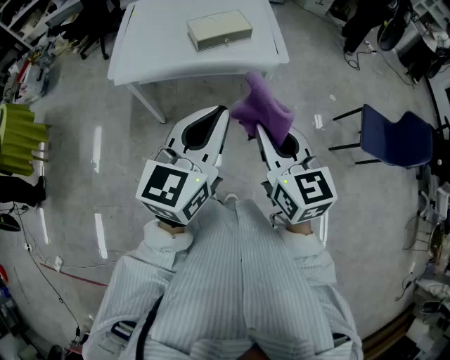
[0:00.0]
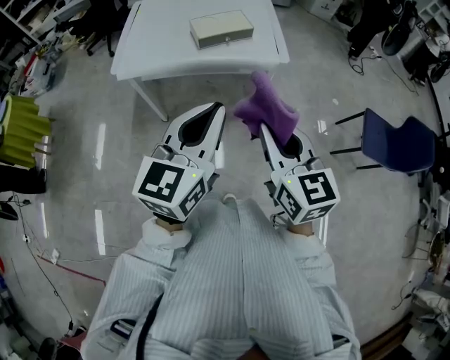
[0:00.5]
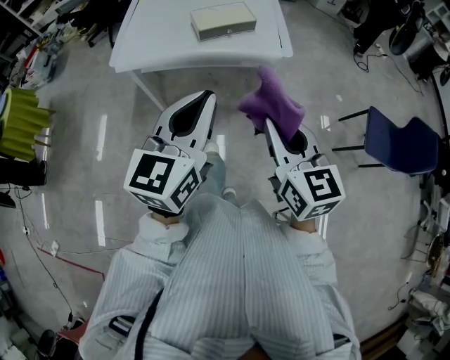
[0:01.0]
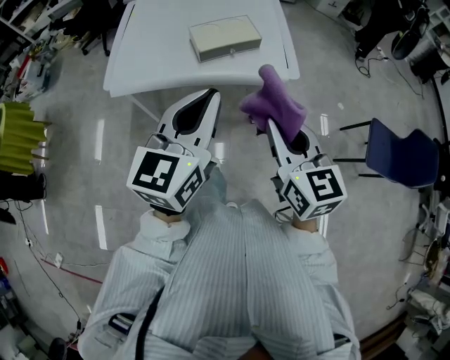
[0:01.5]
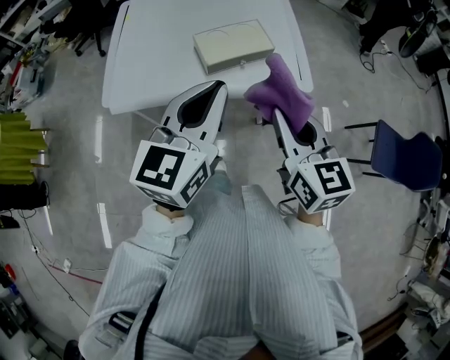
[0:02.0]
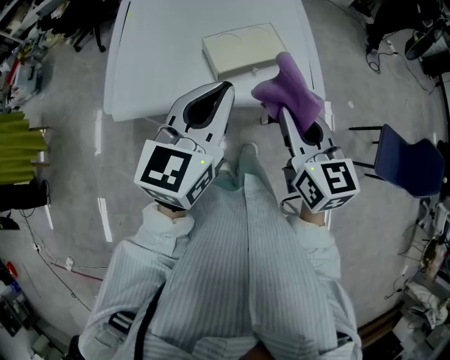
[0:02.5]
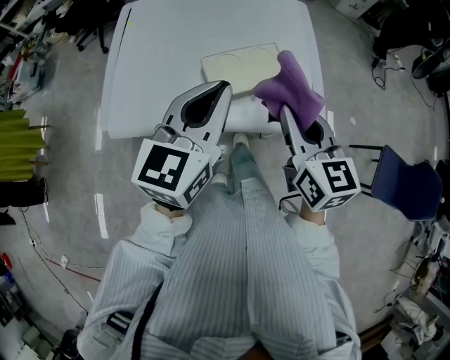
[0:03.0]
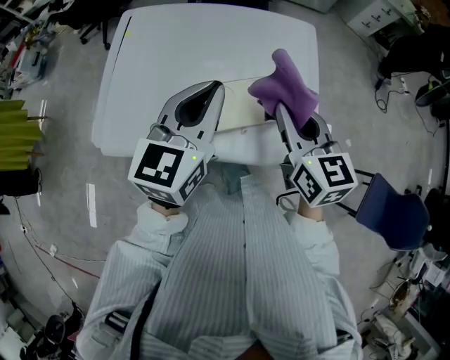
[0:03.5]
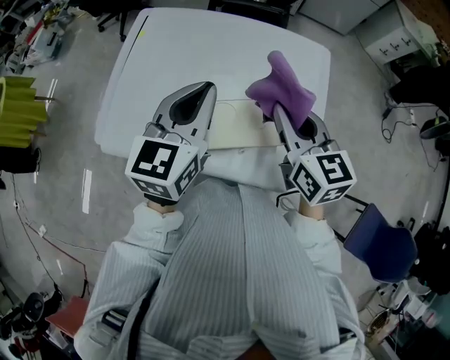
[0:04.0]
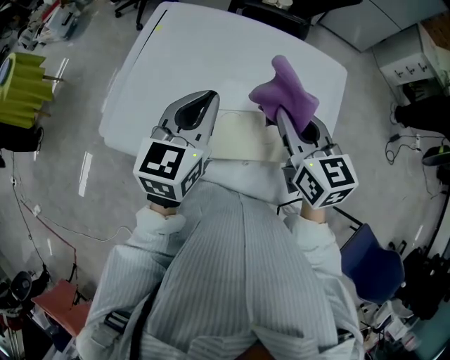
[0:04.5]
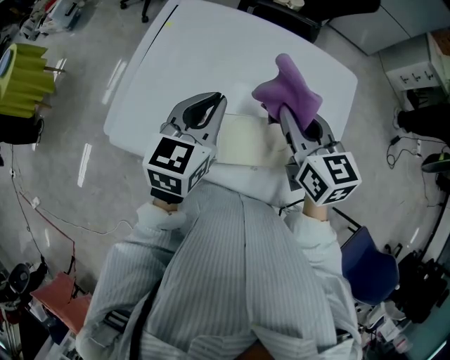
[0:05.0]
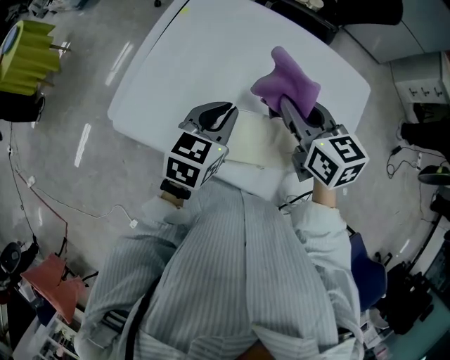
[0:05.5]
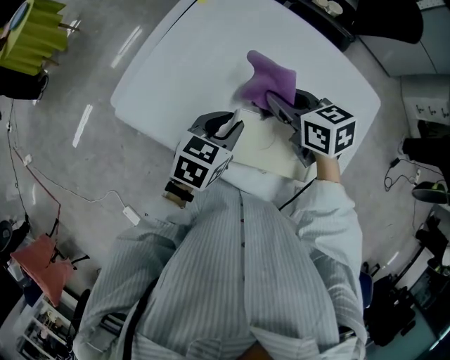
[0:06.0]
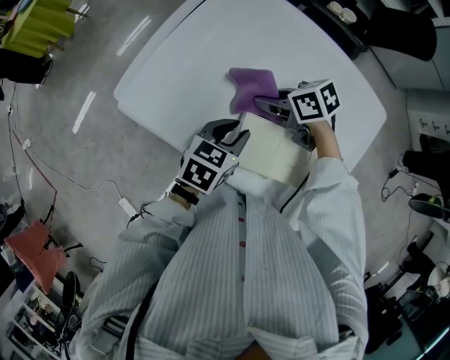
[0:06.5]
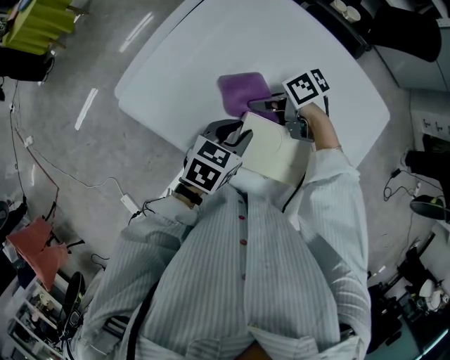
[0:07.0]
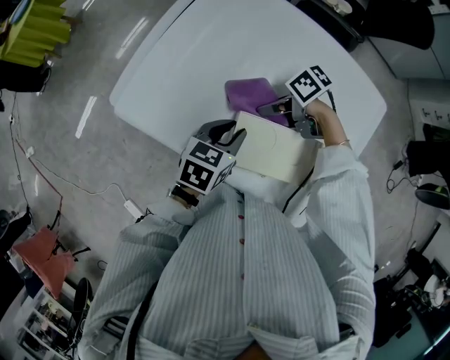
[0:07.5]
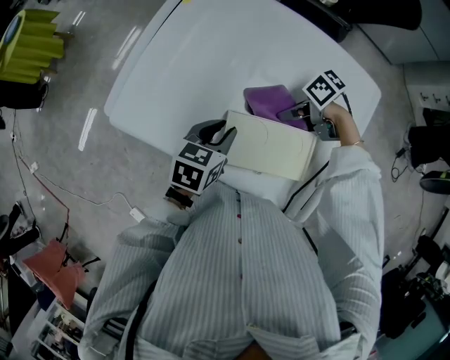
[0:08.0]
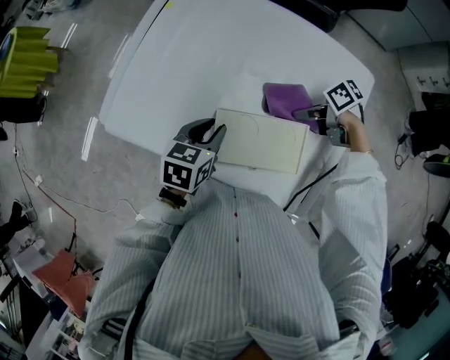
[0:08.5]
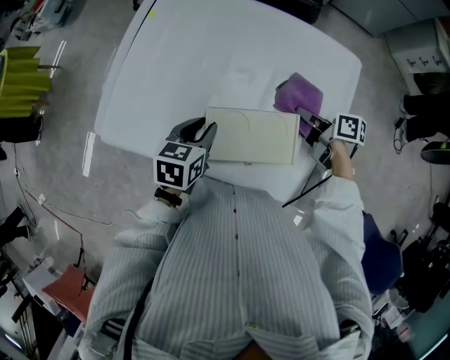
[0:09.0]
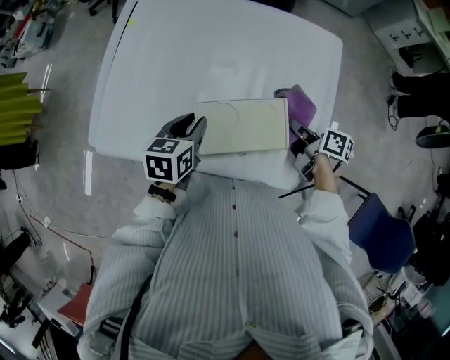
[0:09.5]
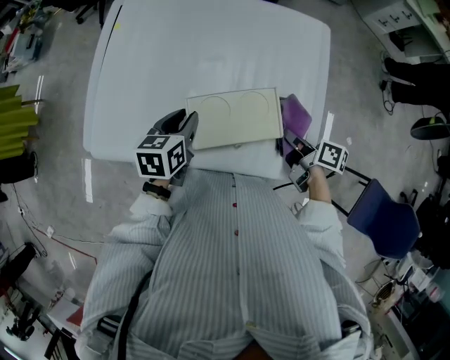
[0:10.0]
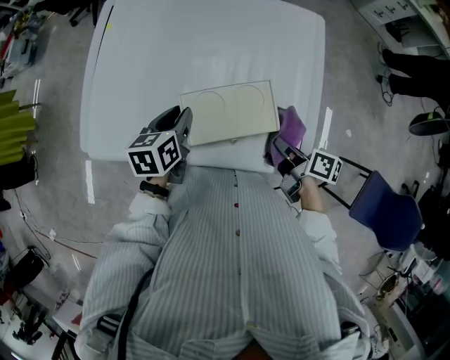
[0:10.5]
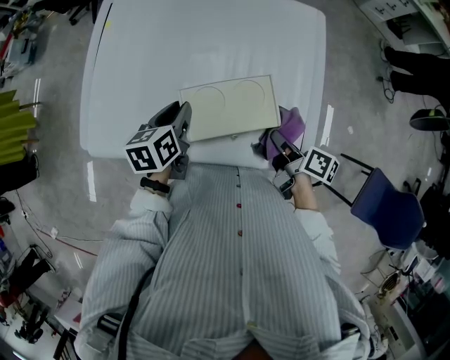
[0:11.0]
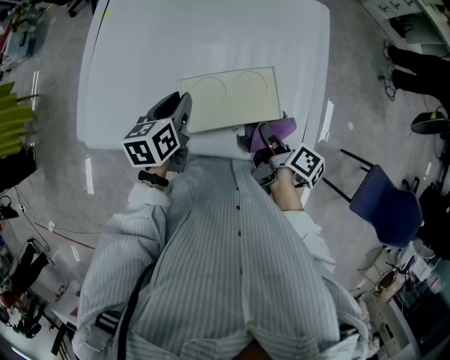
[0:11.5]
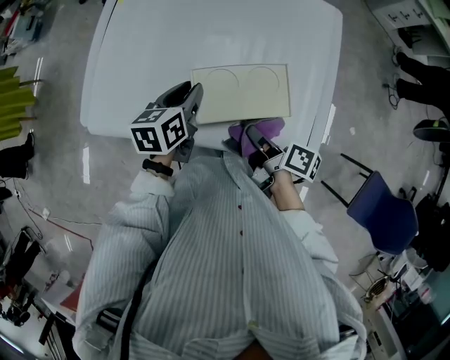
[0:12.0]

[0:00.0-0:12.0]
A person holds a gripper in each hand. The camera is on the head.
0:00.0 to 0:02.0: The two grippers go approximately 25 cm forward.
0:02.0 to 0:04.0: The two grippers go roughly 35 cm forward.
0:04.0 to 0:06.0: The right gripper goes roughly 20 cm to the left, downward and forward, and turns by roughly 40 degrees. Meanwhile the left gripper heads downward, covering approximately 20 cm, and rotates about 30 degrees.
0:06.0 to 0:08.0: The right gripper moves downward, about 10 cm, and turns by roughly 50 degrees.
0:08.0 to 0:10.0: The right gripper changes place by about 20 cm, and turns by some 80 degrees.
0:10.0 to 0:12.0: The right gripper heads to the left and backward, covering about 15 cm.

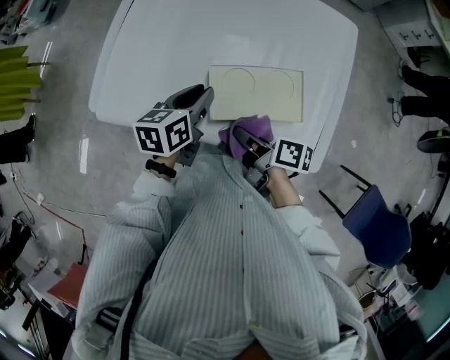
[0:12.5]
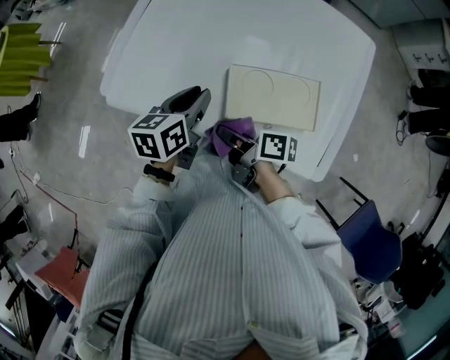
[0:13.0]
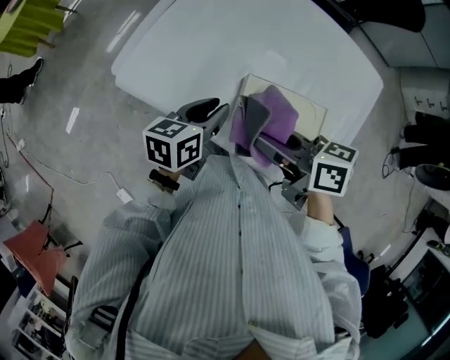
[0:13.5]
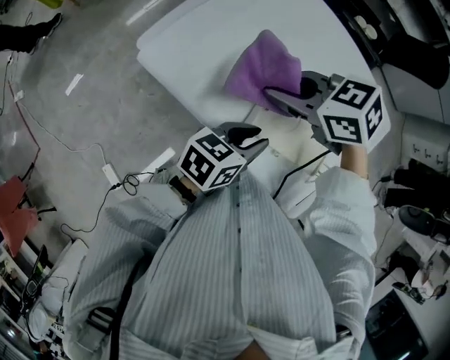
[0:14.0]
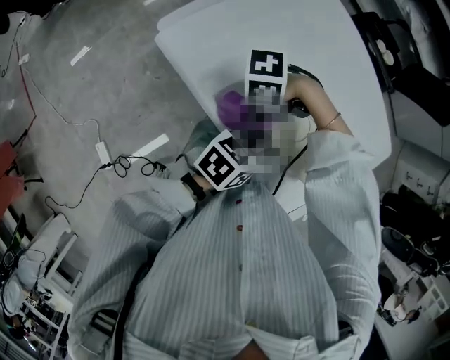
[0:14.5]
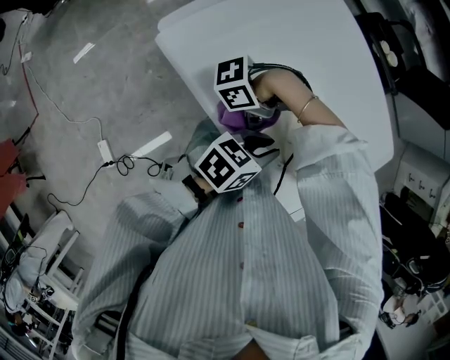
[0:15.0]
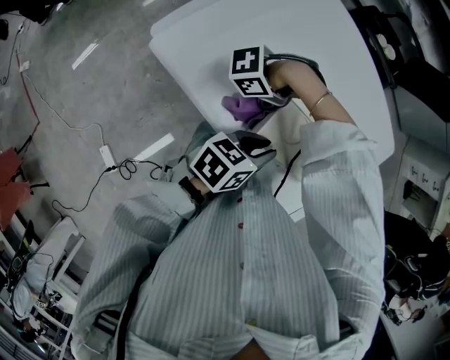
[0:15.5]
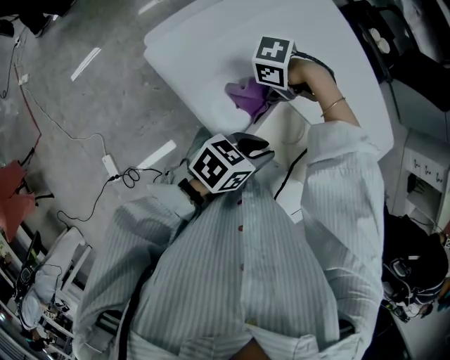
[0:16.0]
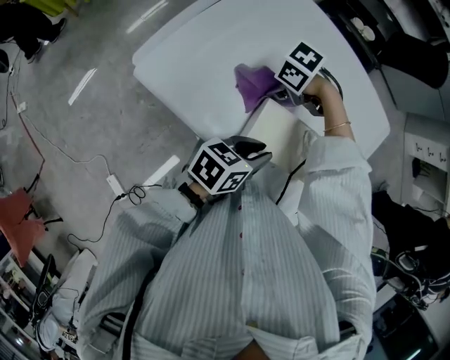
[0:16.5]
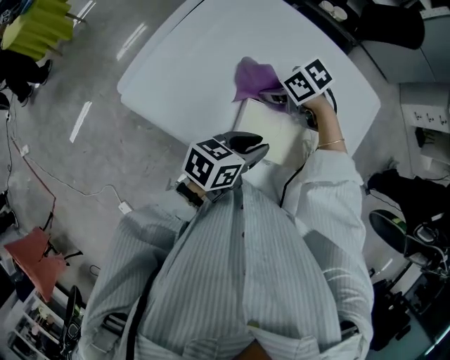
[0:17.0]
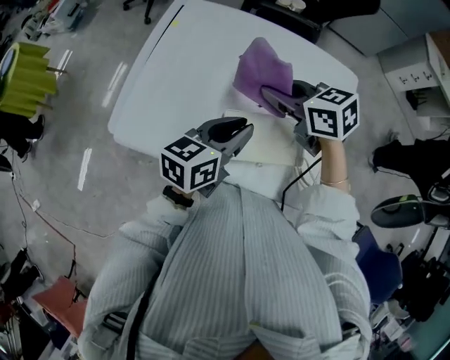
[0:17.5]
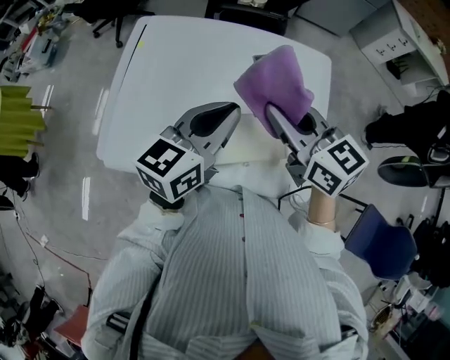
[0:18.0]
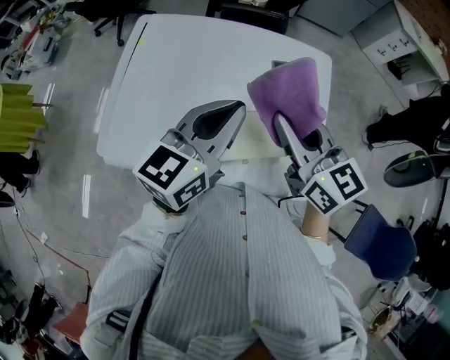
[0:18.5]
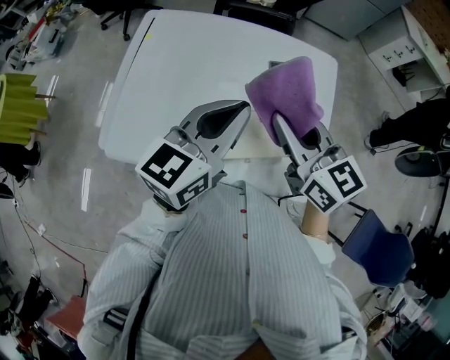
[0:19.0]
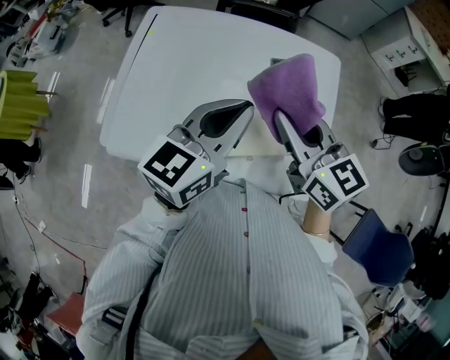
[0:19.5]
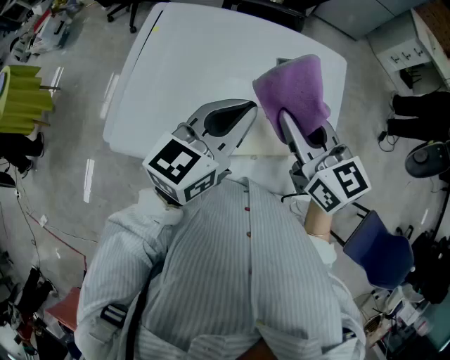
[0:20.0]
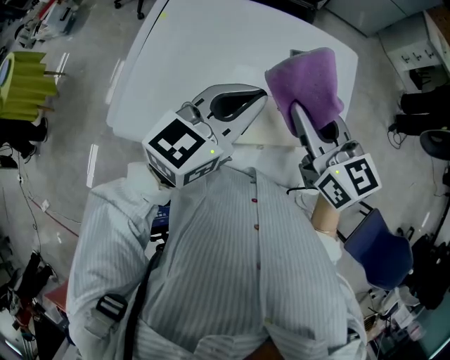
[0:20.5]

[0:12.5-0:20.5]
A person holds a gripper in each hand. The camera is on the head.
0:12.5 to 0:14.5: The left gripper changes place by some 10 cm. Meanwhile the right gripper reaches approximately 15 cm upward, then returns, and rotates some 150 degrees.
0:14.5 to 0:16.5: The right gripper ends up approximately 15 cm from where it was, and swivels roughly 40 degrees.
0:16.5 to 0:18.5: Both grippers move upward, some 25 cm. The left gripper changes its angle by approximately 40 degrees. The right gripper tilts its fingers some 50 degrees upward.
0:18.5 to 0:20.5: The grippers move only a little.

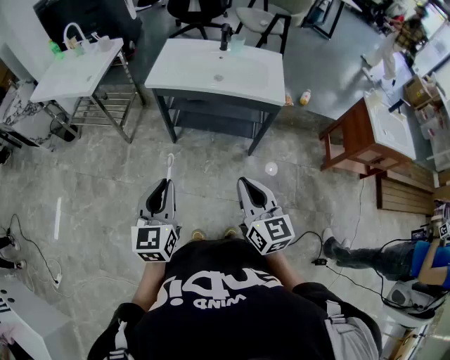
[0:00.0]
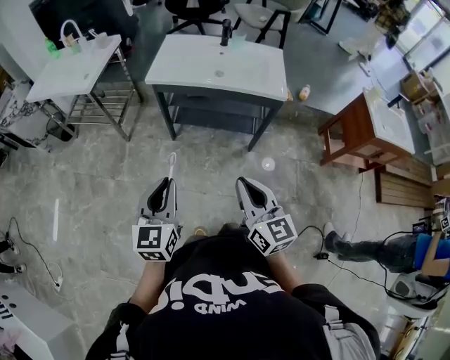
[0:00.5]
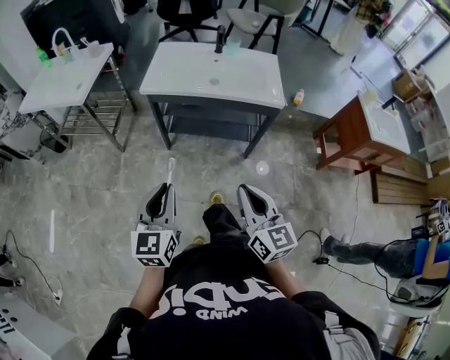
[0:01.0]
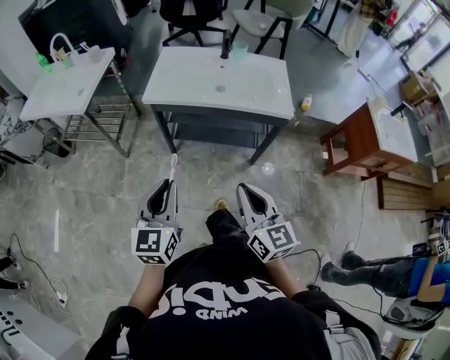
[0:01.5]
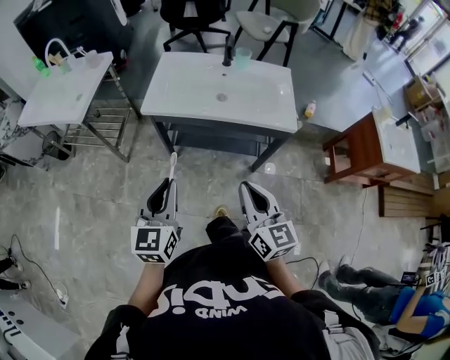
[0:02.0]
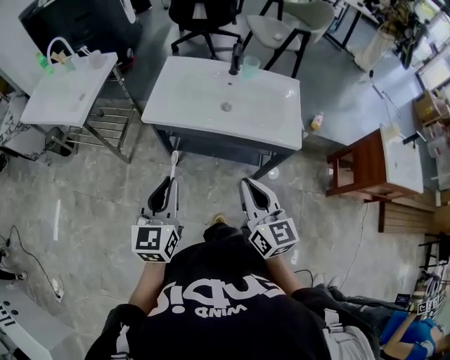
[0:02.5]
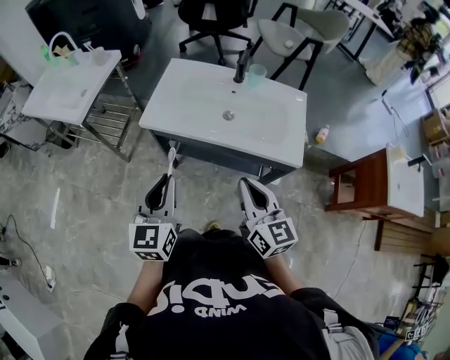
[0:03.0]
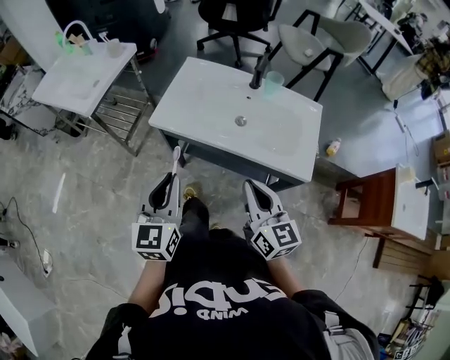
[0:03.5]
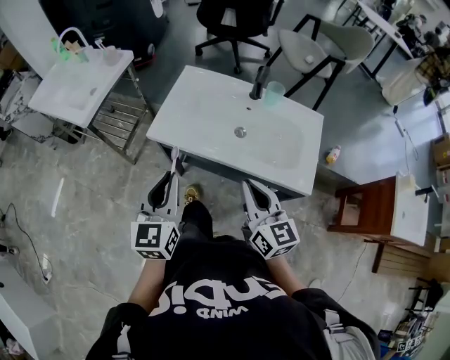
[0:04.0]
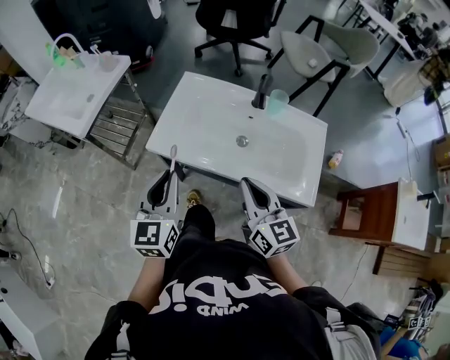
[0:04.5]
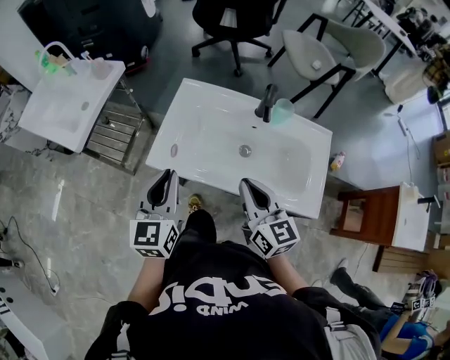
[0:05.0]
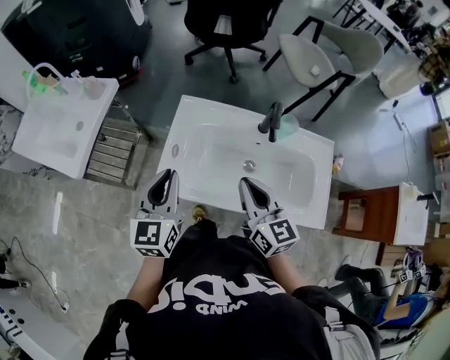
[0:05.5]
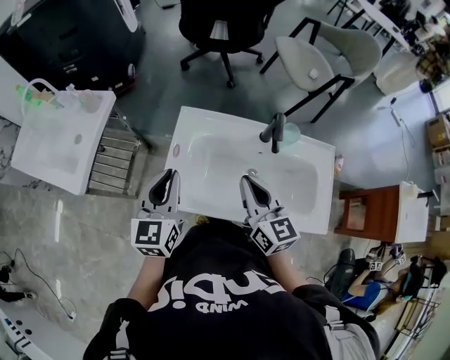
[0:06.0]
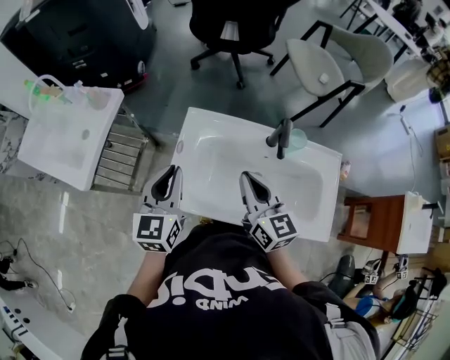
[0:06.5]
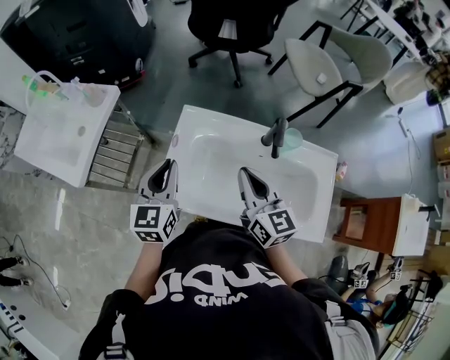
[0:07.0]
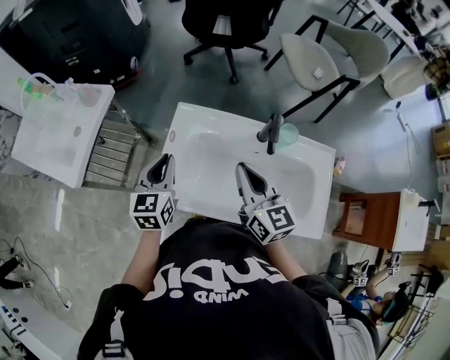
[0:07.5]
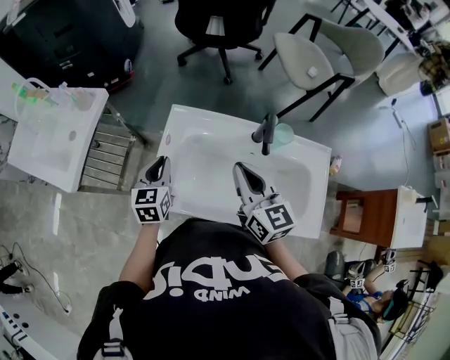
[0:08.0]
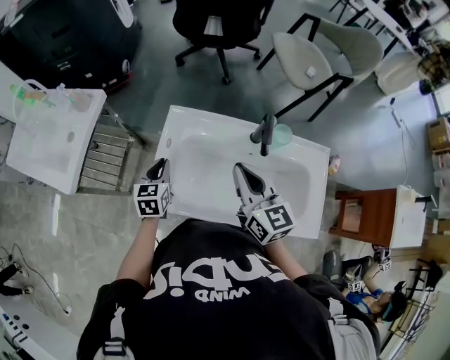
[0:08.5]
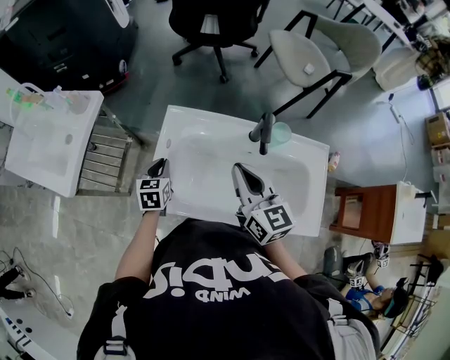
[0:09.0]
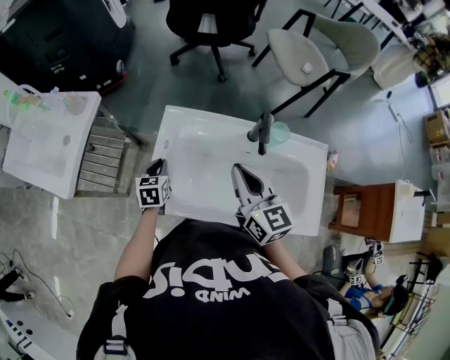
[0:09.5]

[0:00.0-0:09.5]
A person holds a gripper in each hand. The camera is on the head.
0:00.0 to 0:02.0: Both grippers move forward, about 15 cm.
0:02.0 to 0:04.0: The two grippers go approximately 20 cm forward.
0:04.0 to 0:05.5: The two grippers go about 20 cm forward.
0:05.5 to 0:07.5: The left gripper shifts roughly 10 cm forward and downward, while the right gripper is displaced forward by about 10 cm.
0:07.5 to 0:09.5: The left gripper goes about 15 cm downward, and turns by roughly 20 degrees.
